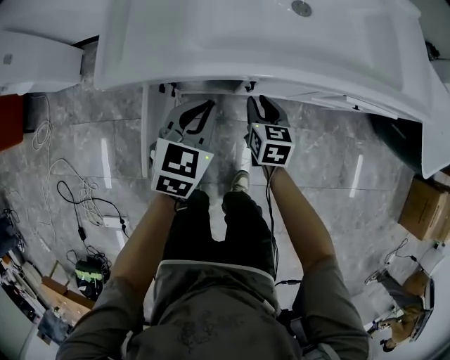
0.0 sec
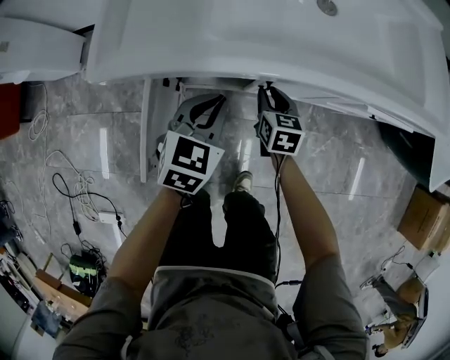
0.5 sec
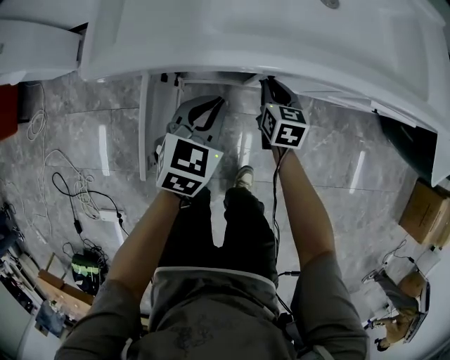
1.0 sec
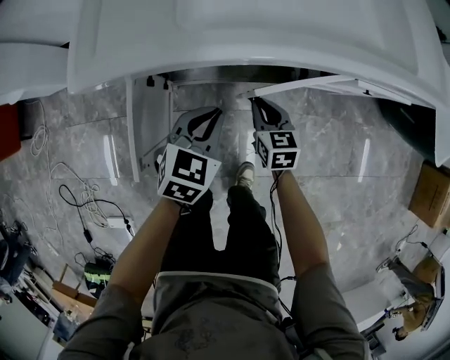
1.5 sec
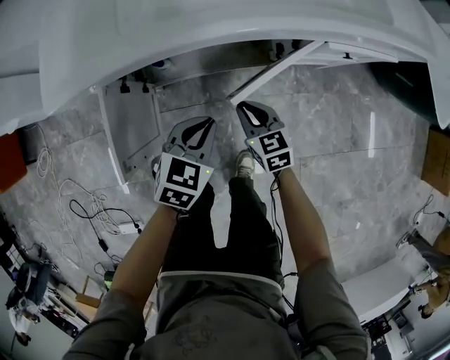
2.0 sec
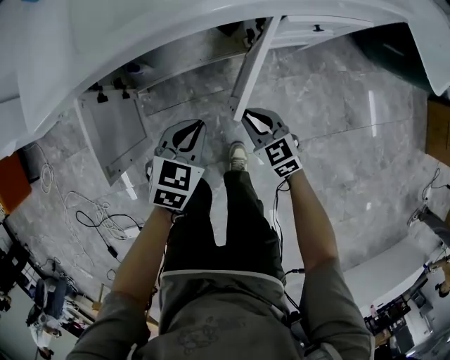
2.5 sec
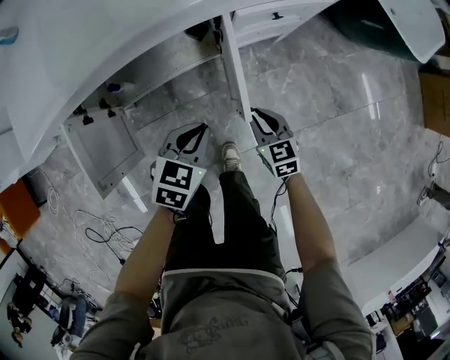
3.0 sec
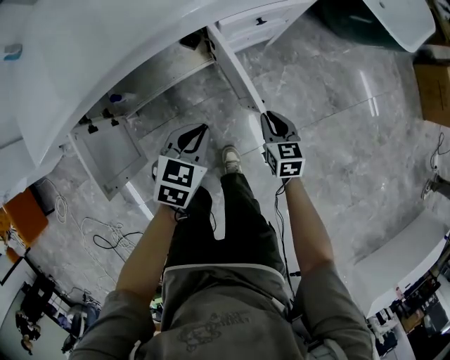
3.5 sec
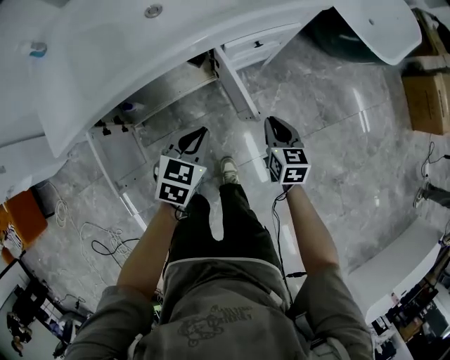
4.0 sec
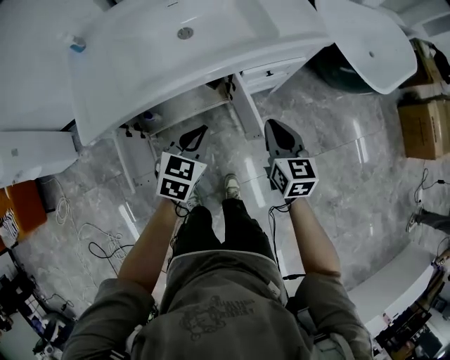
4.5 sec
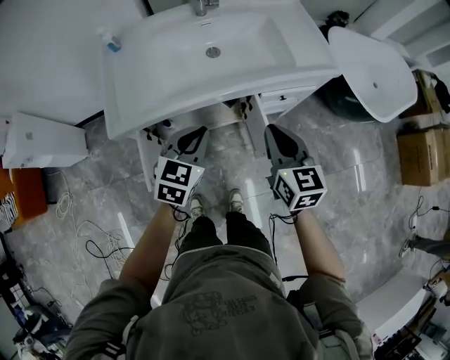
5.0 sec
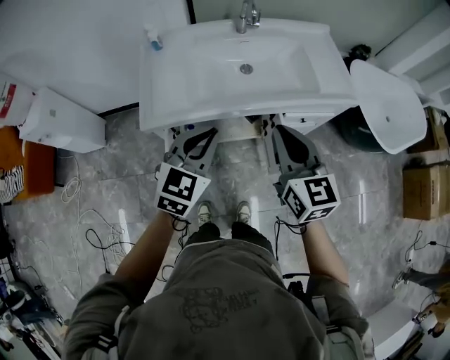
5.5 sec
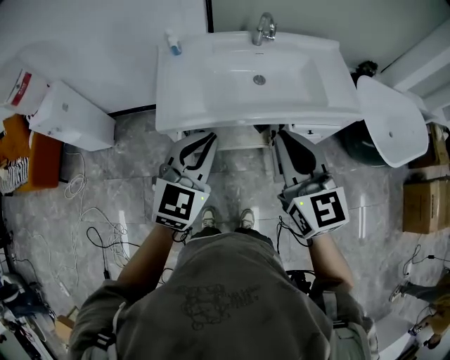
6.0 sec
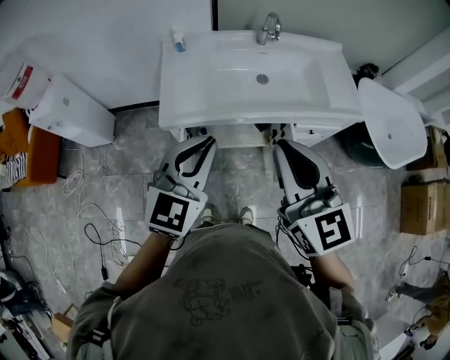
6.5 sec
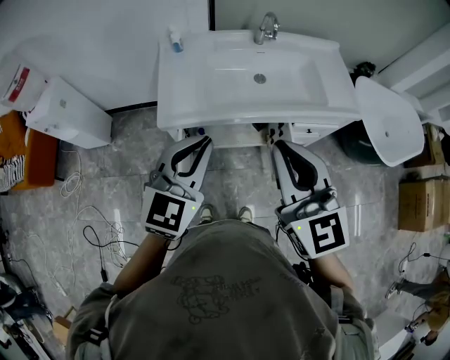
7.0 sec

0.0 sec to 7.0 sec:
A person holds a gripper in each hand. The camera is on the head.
0.0 sec to 2.0 sec: The left gripper goes some 15 cm to the right, downward and backward. The right gripper shifts some 10 cm backward and downward.
2.0 sec to 3.5 sec: The left gripper goes roughly 15 cm to the right. Meanwhile the right gripper moves to the right, some 25 cm, and rotates roughly 30 degrees.
3.5 sec to 5.0 sec: The left gripper moves upward and to the left, some 30 cm, and swivels some 20 degrees. The right gripper heads upward, covering some 40 cm, and turns by some 20 degrees.
5.0 sec to 7.0 sec: The grippers both shift upward and to the left by some 25 cm. The right gripper rotates roughly 30 degrees. The left gripper changes its angle by about 20 degrees.

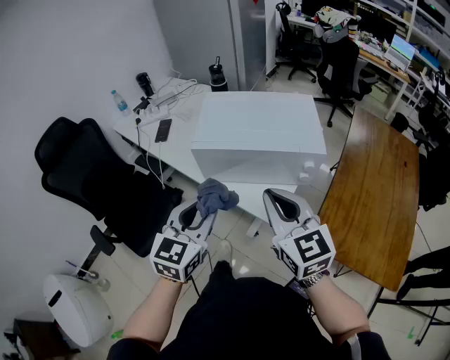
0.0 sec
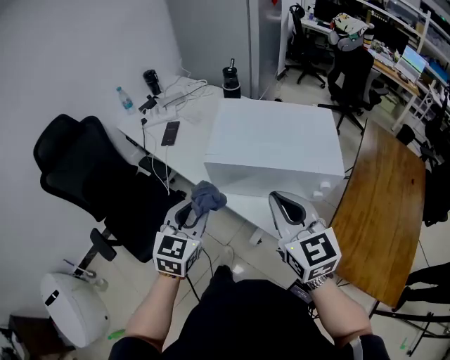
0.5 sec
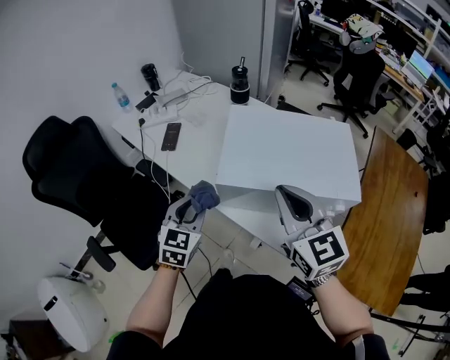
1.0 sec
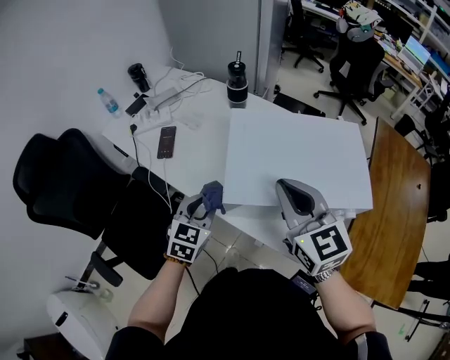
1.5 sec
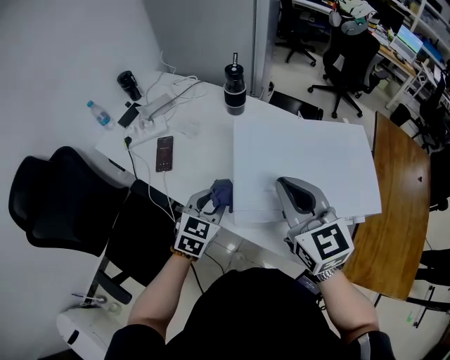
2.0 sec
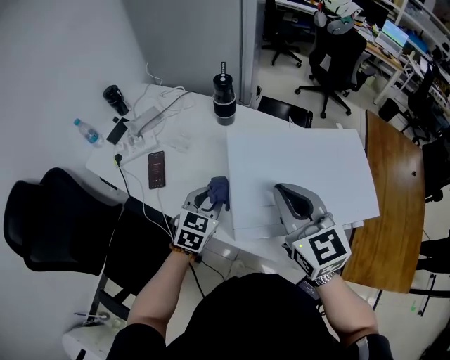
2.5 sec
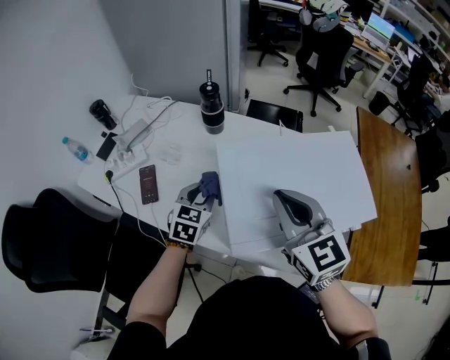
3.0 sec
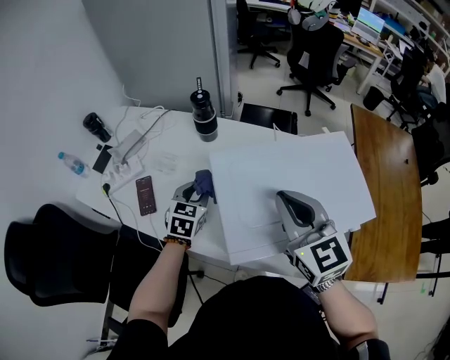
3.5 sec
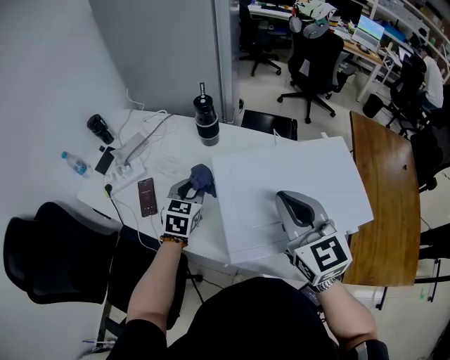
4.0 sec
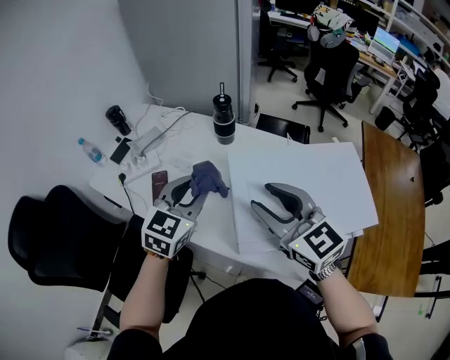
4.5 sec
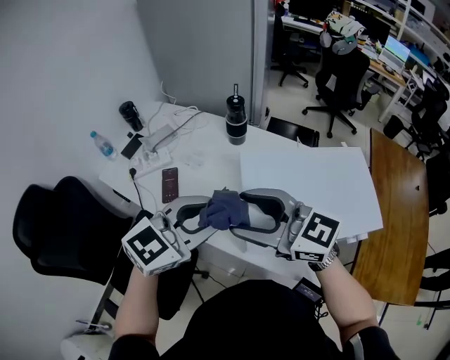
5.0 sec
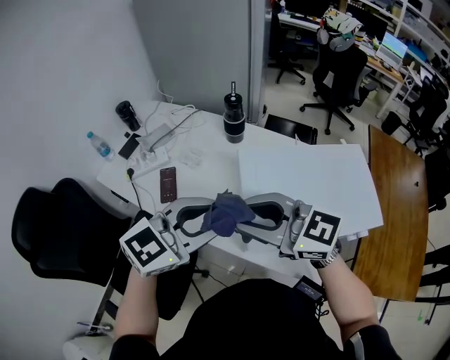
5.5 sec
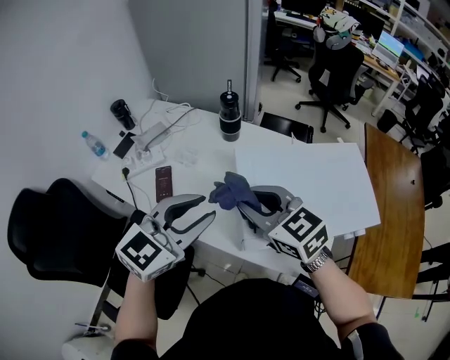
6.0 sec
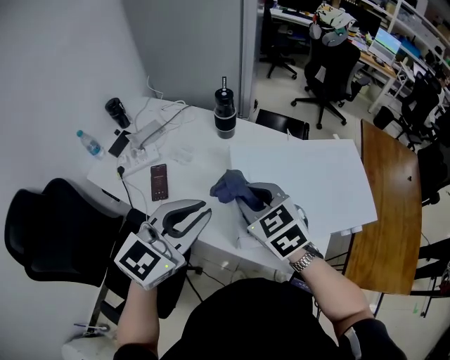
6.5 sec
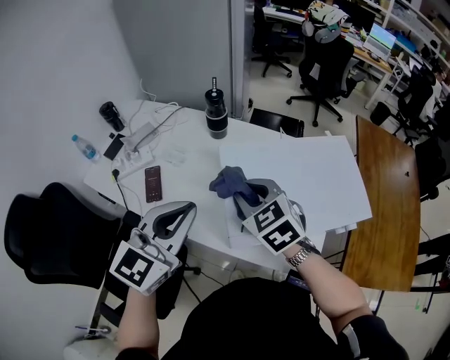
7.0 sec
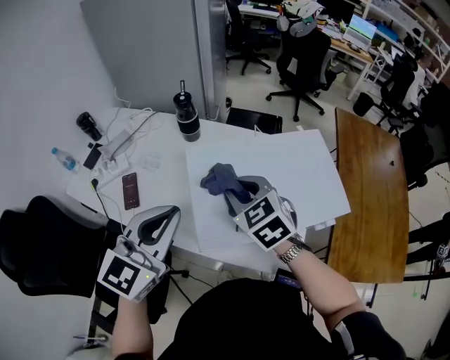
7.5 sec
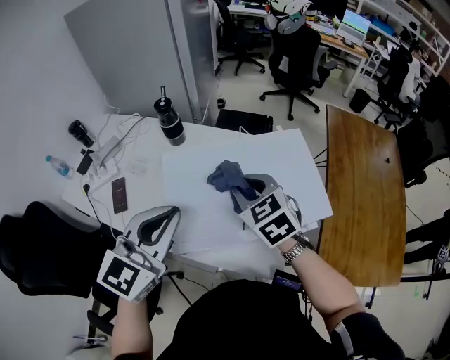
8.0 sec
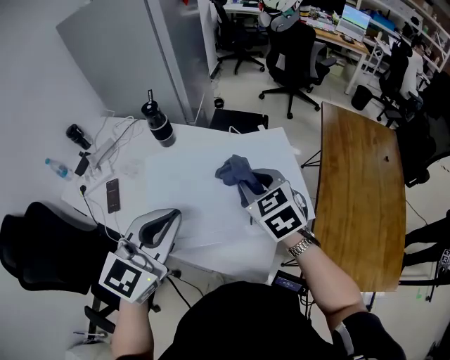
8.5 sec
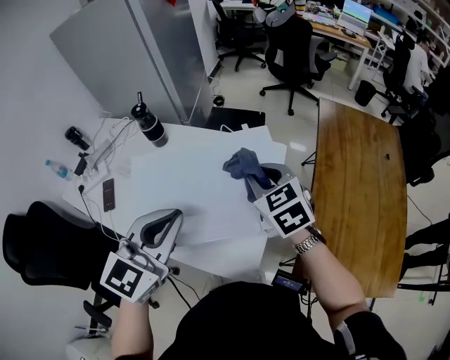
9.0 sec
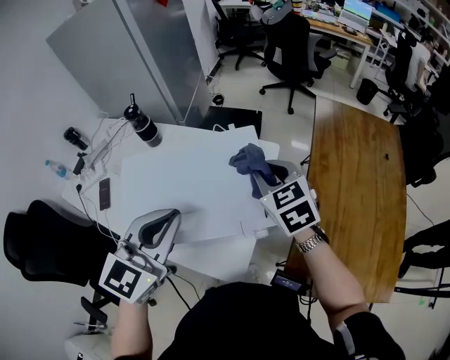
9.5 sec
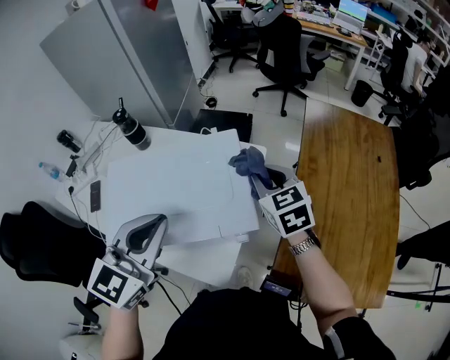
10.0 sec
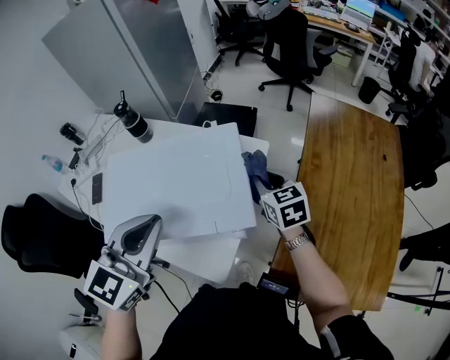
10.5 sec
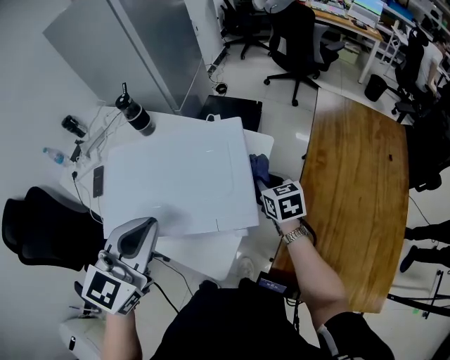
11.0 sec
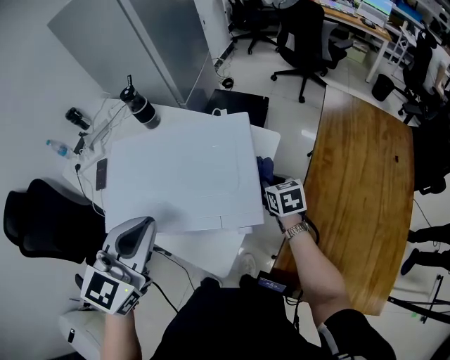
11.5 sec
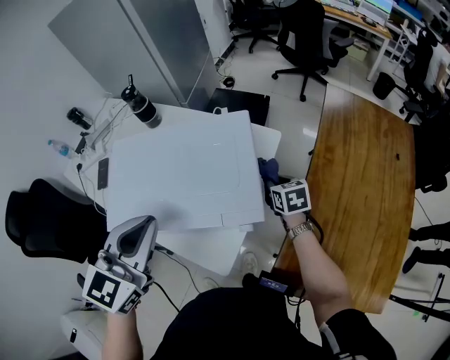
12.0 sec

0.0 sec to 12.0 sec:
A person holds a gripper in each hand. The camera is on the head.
0.0 sec to 2.0 sec: The left gripper moves forward and downward, roughly 35 cm. Meanwhile the right gripper shifts some 30 cm forward and to the left.
2.0 sec to 4.0 sec: The right gripper changes place by about 5 cm; the left gripper moves forward, approximately 15 cm.
4.0 sec to 6.0 sec: The right gripper changes place by roughly 15 cm, rotates approximately 30 degrees, and opens and closes again, while the left gripper shifts about 20 cm upward, and changes its angle by about 30 degrees.
6.0 sec to 8.0 sec: The grippers both shift to the right by roughly 15 cm. The right gripper rotates roughly 20 degrees, while the left gripper closes.
8.0 sec to 10.0 sec: Both grippers travel together to the right, about 25 cm.
10.0 sec to 12.0 sec: The right gripper heads downward, covering about 20 cm, and turns by roughly 20 degrees.

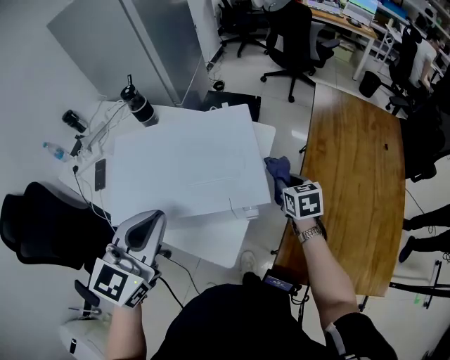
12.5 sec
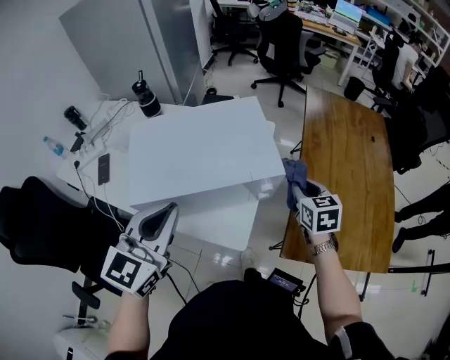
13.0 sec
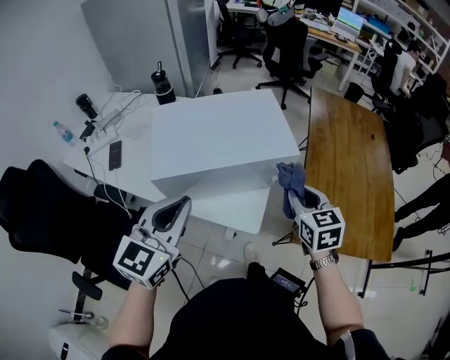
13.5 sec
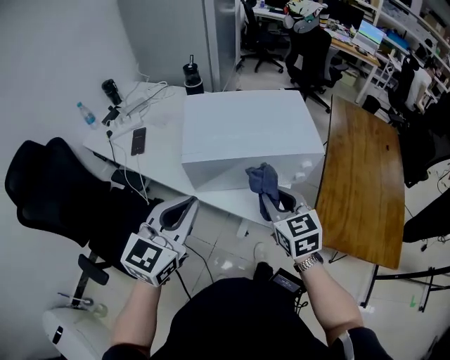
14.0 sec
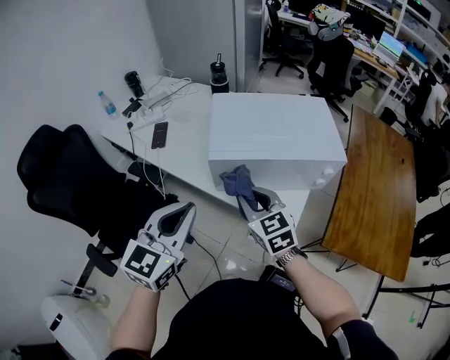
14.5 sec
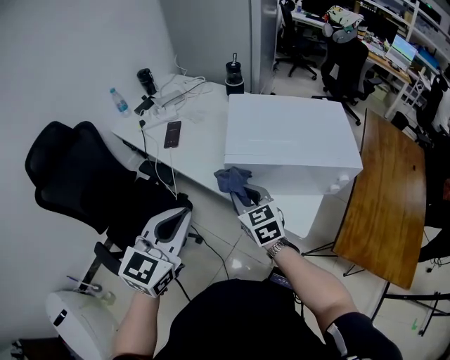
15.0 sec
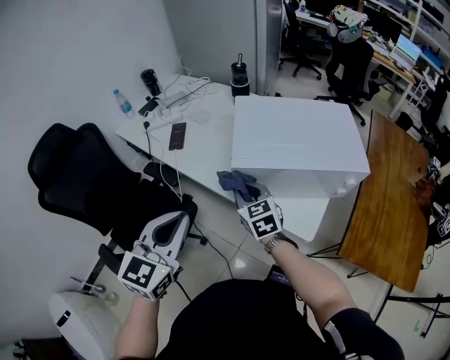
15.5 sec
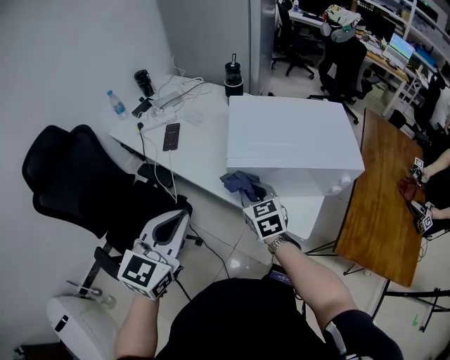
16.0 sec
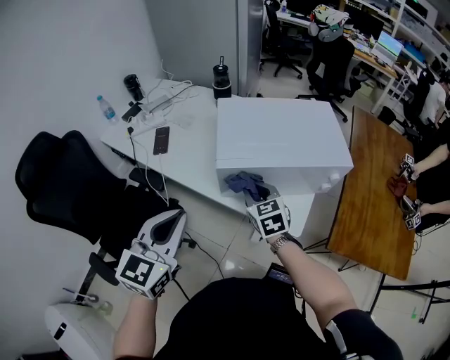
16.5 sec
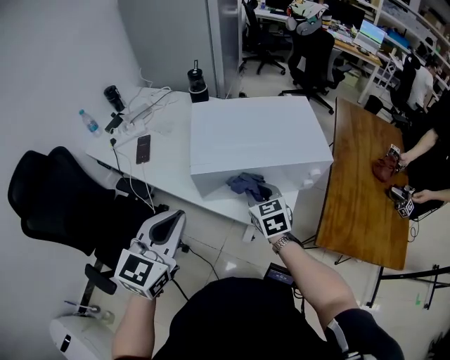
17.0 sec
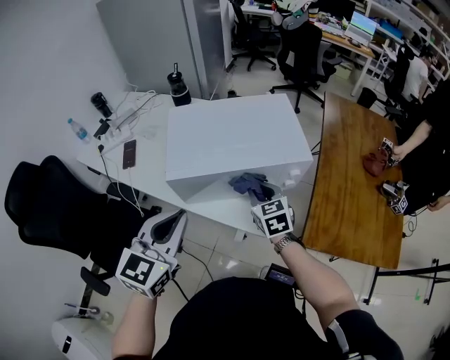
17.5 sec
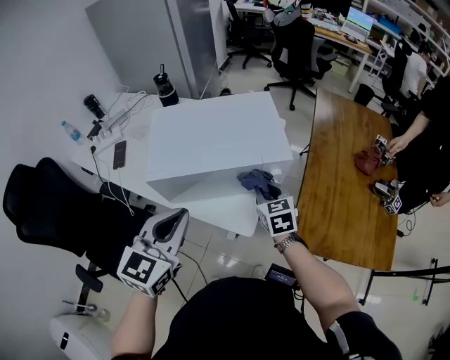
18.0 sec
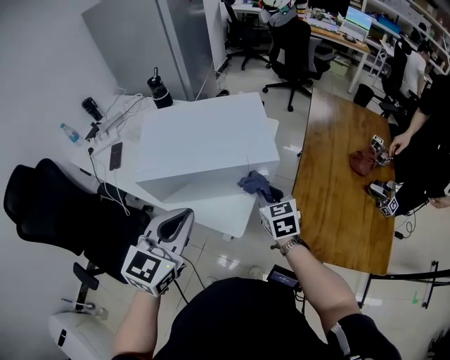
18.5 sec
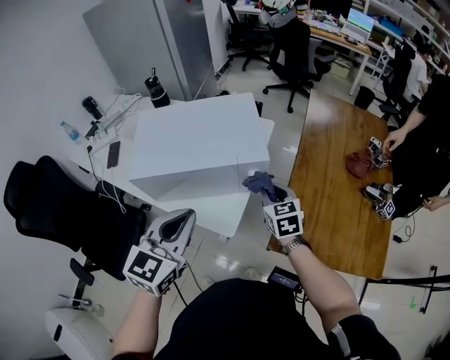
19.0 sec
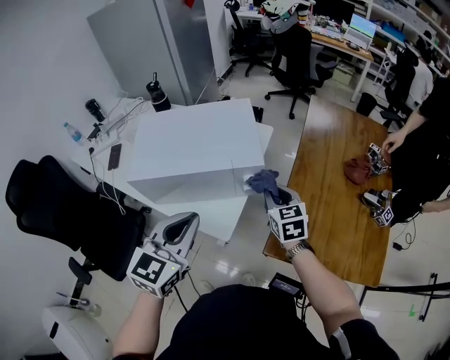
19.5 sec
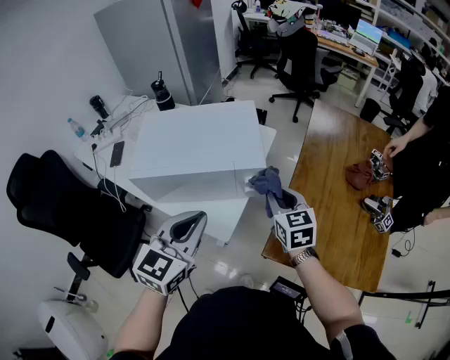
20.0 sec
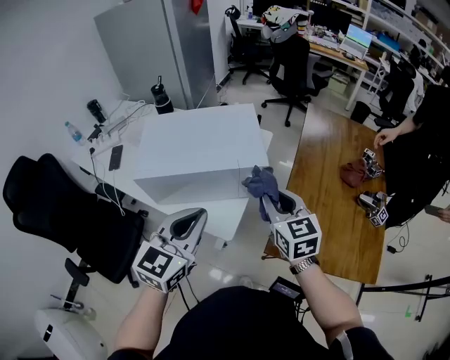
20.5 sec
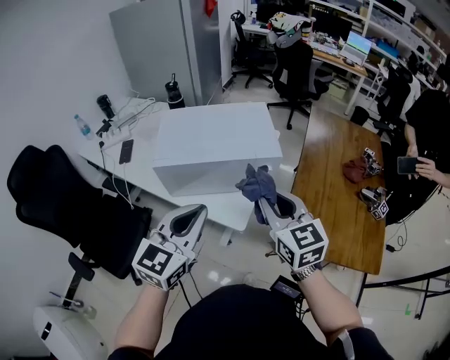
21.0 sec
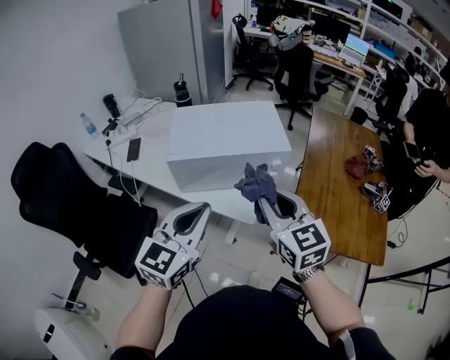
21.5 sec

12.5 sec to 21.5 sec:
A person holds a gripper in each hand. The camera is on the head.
12.5 sec to 14.5 sec: The left gripper goes roughly 30 cm to the left and backward. Meanwhile the right gripper is displaced to the left and backward by roughly 50 cm, and swivels some 30 degrees.
14.5 sec to 17.0 sec: The right gripper is displaced to the right, forward and downward by some 10 cm, while the left gripper reaches roughly 5 cm to the left, then returns.
17.0 sec to 19.5 sec: The grippers both shift to the right by roughly 30 cm.
19.5 sec to 21.5 sec: The right gripper shifts some 30 cm backward, upward and to the left, and turns by approximately 20 degrees, while the left gripper is displaced backward and to the left by approximately 15 cm.
